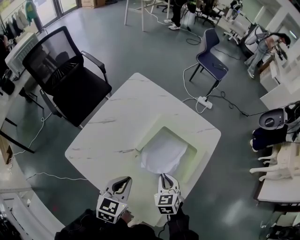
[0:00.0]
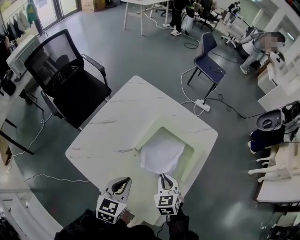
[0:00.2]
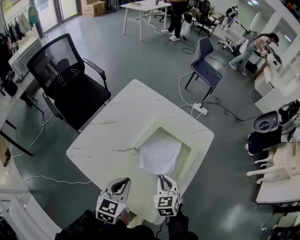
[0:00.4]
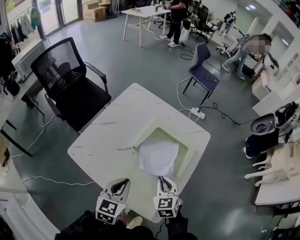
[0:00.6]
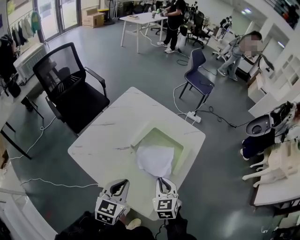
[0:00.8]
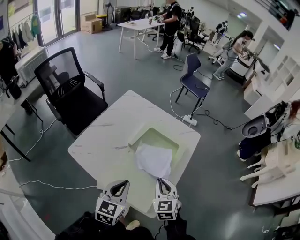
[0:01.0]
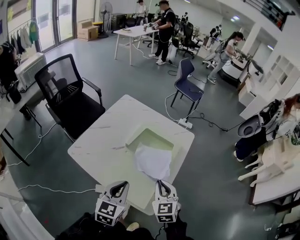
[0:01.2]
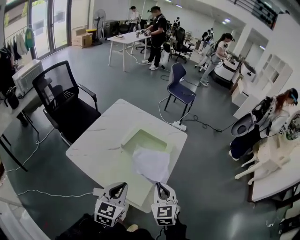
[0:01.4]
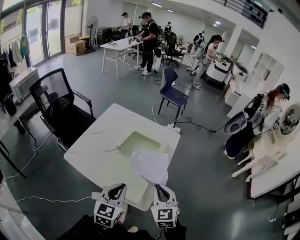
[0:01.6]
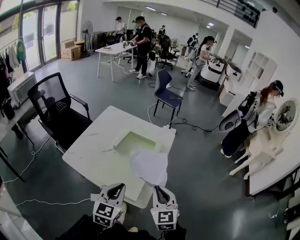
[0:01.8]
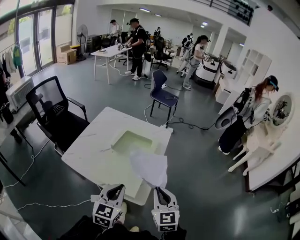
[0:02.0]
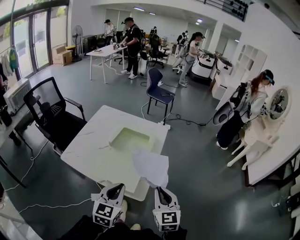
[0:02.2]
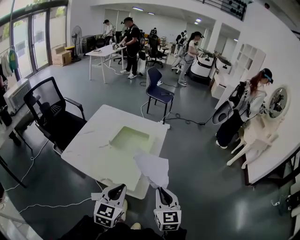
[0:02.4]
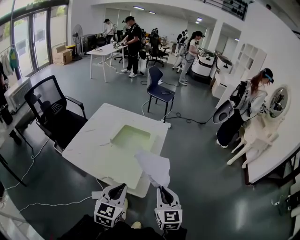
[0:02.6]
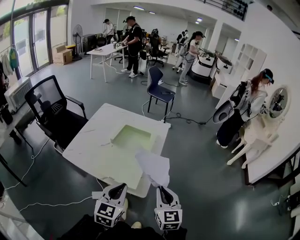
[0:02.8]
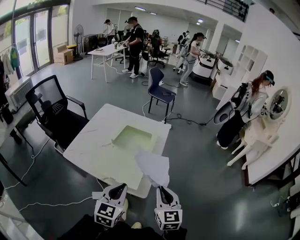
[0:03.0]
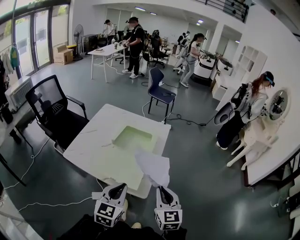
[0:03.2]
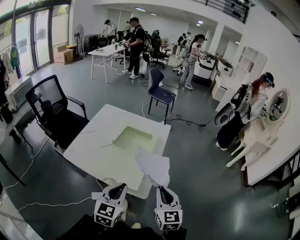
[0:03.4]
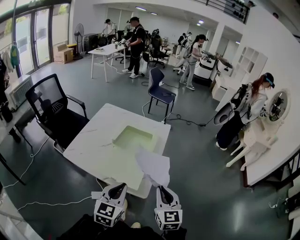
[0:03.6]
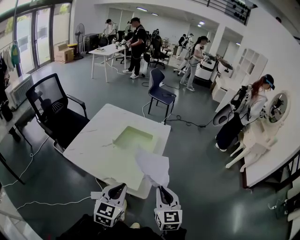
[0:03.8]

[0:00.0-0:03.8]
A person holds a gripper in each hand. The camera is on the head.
0:00.0 to 0:01.2: The grippers both shift backward and upward by about 25 cm.
0:01.2 to 0:02.6: The two grippers go about 25 cm backward and to the right. The right gripper rotates some 20 degrees.
0:02.6 to 0:03.8: The grippers stay close to where they were, moving slightly.

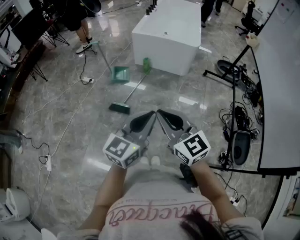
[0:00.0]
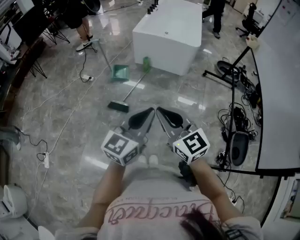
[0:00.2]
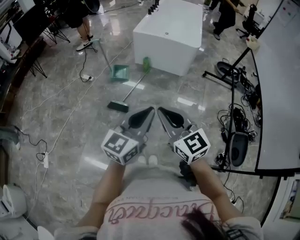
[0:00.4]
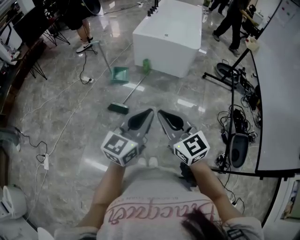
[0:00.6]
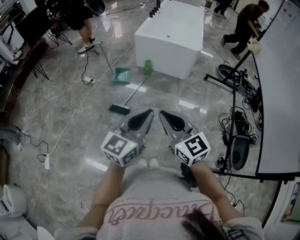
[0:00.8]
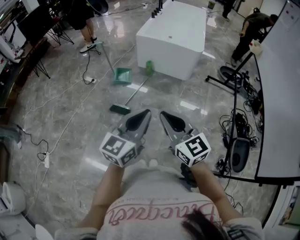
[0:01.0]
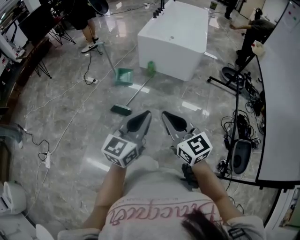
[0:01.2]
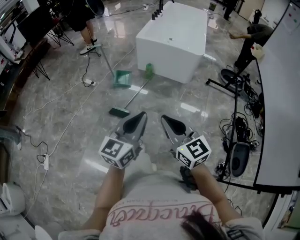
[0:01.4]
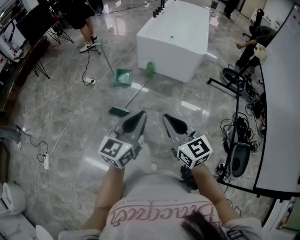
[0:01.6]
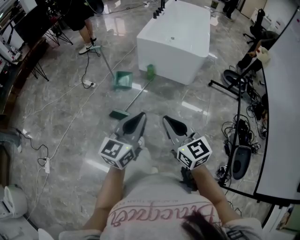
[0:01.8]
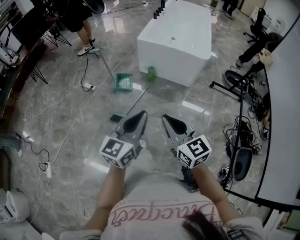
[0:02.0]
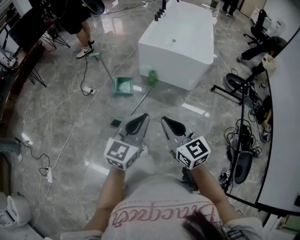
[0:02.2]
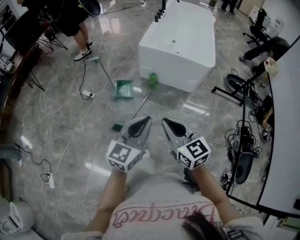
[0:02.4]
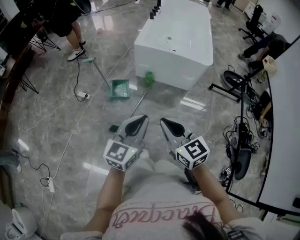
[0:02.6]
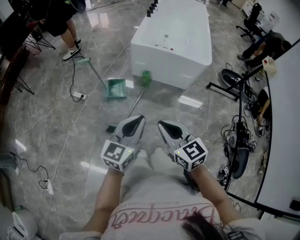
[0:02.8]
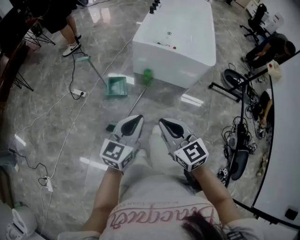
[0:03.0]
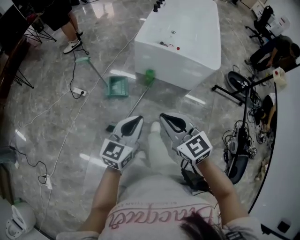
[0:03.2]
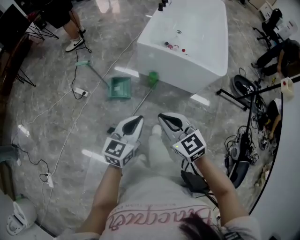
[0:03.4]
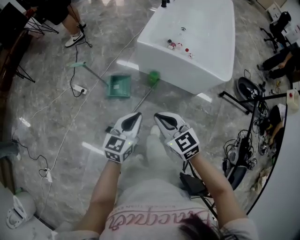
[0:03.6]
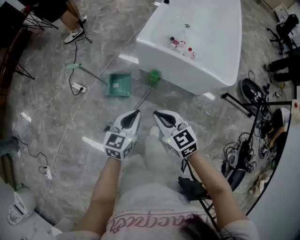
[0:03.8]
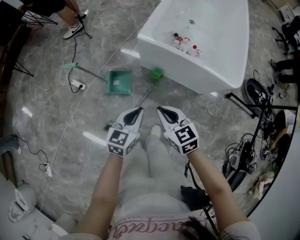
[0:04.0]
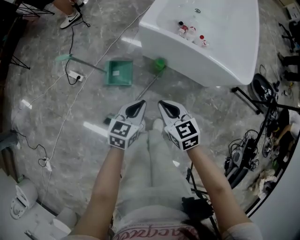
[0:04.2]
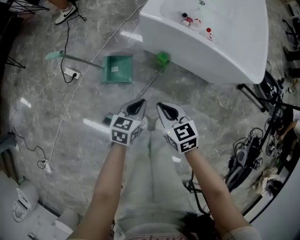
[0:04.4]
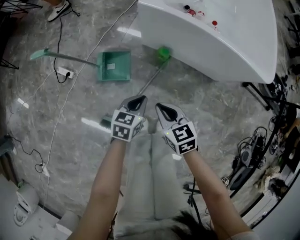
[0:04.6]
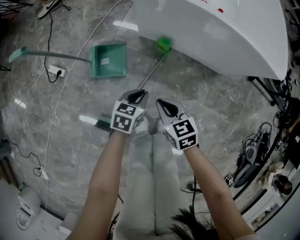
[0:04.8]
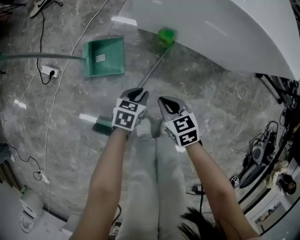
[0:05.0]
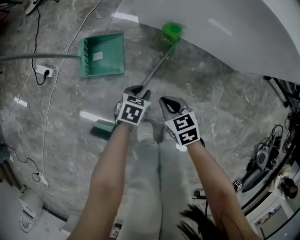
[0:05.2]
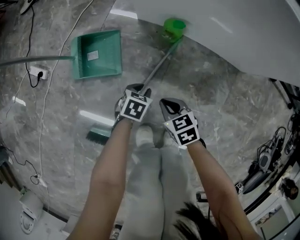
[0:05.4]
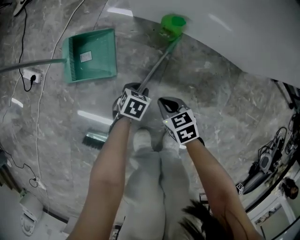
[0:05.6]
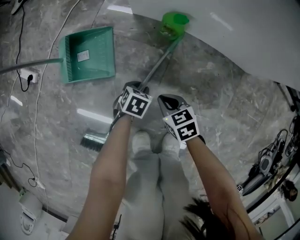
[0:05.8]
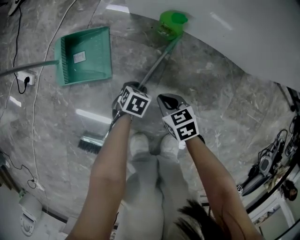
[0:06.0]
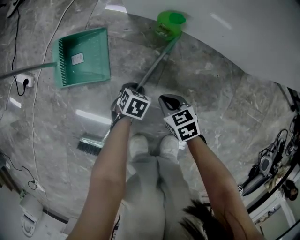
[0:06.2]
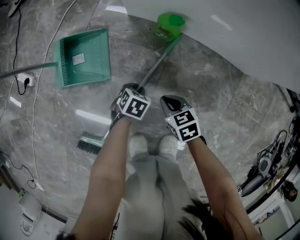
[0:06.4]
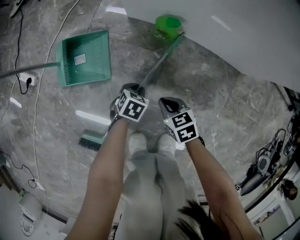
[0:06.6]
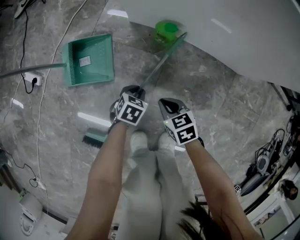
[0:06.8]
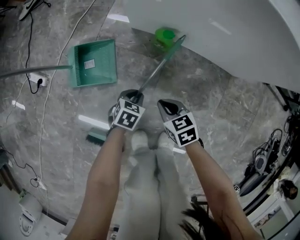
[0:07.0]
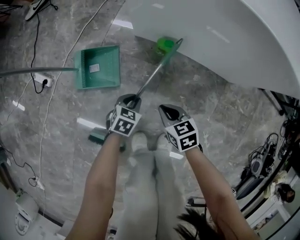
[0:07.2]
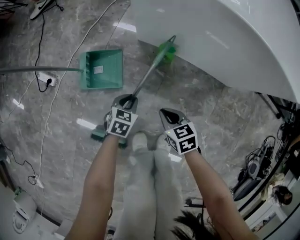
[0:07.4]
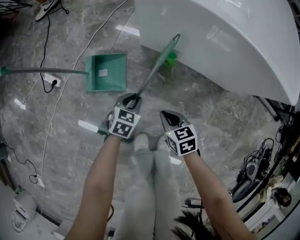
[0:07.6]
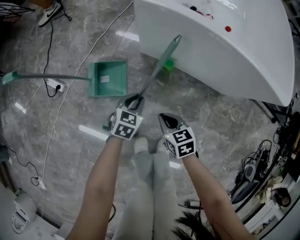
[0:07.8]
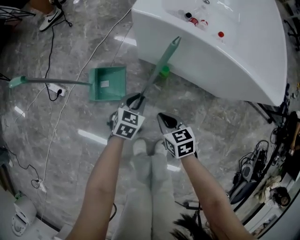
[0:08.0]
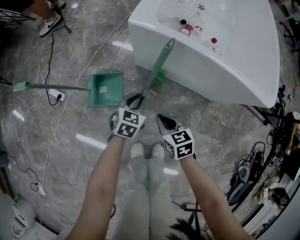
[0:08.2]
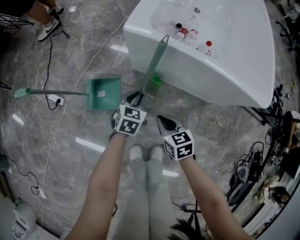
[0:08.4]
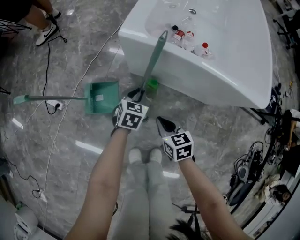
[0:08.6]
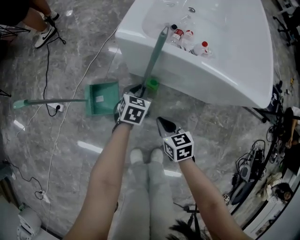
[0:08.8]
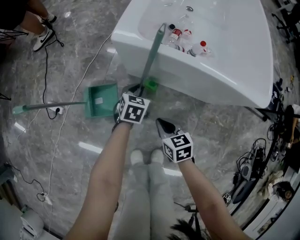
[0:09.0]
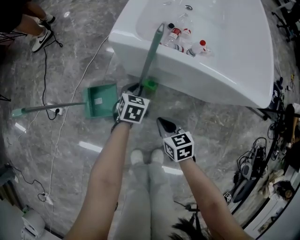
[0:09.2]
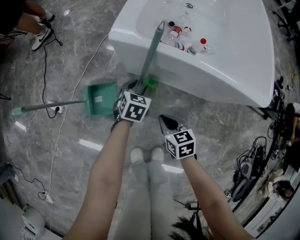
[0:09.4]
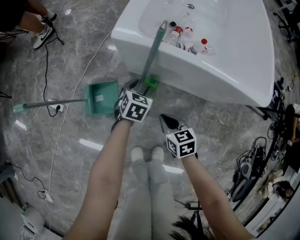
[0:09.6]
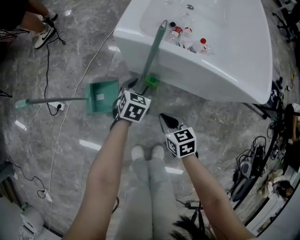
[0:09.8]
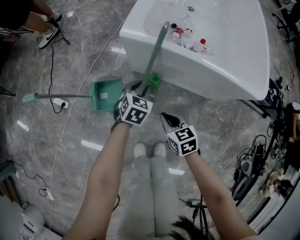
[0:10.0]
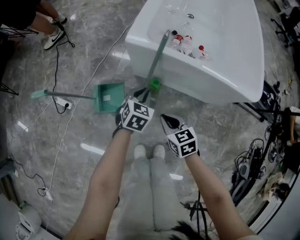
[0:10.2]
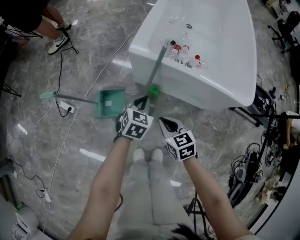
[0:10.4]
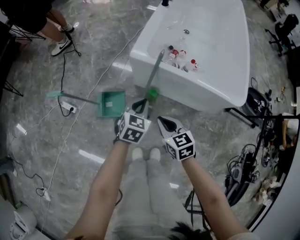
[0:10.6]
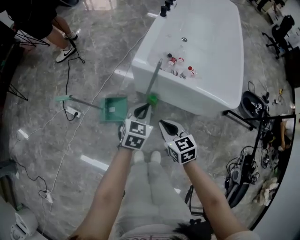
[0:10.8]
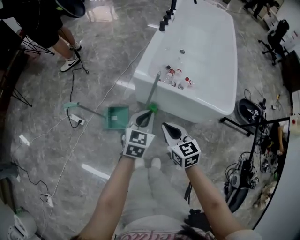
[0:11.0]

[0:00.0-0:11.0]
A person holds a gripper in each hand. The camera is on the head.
0:00.0 to 0:01.6: Both grippers travel together forward, approximately 5 cm.
0:01.6 to 0:03.2: Both grippers travel together forward, roughly 25 cm.
0:03.2 to 0:04.8: The two grippers go about 50 cm downward and forward. The right gripper turns by approximately 30 degrees; the left gripper angles its fingers downward, by about 30 degrees.
0:04.8 to 0:06.2: The grippers both shift downward by roughly 30 cm. The left gripper swivels approximately 30 degrees.
0:06.2 to 0:07.8: The two grippers go roughly 25 cm upward. The left gripper changes its angle by about 30 degrees.
0:07.8 to 0:09.4: The right gripper heads upward, to the right and forward, covering about 10 cm, while the left gripper shifts some 15 cm forward, to the right and upward, and opens its fingers.
0:09.4 to 0:11.0: The grippers both shift upward by some 30 cm. The left gripper rotates roughly 20 degrees, and closes, while the right gripper turns by some 20 degrees.

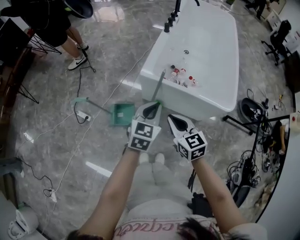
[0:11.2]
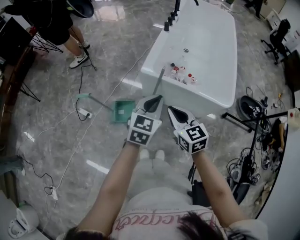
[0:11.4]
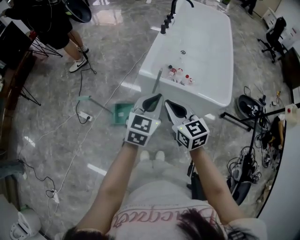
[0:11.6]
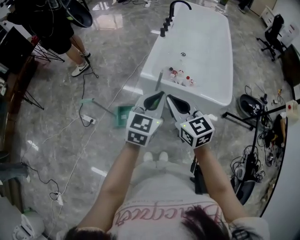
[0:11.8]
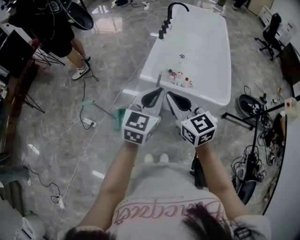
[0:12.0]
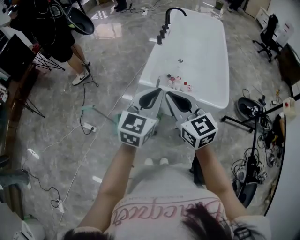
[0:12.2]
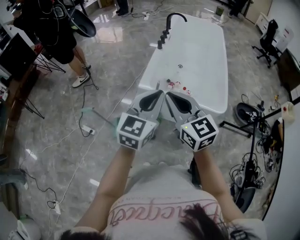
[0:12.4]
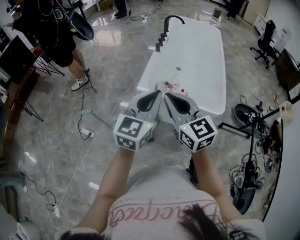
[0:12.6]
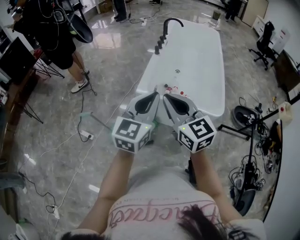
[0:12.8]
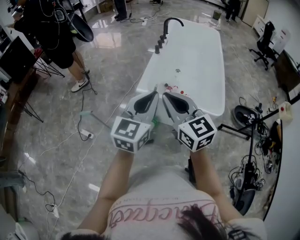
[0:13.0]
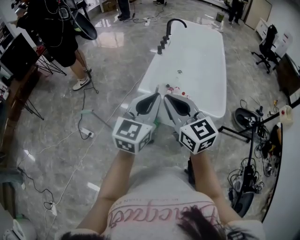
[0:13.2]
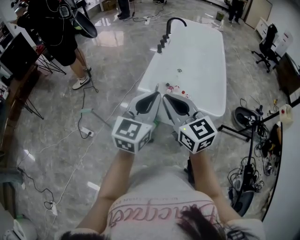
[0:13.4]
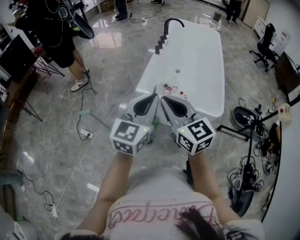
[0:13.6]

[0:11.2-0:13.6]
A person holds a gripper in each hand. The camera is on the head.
0:11.2 to 0:12.4: The grippers both shift upward by some 20 cm. The left gripper changes its angle by roughly 20 degrees. Meanwhile the right gripper changes its angle by approximately 20 degrees.
0:12.4 to 0:13.6: The grippers stay close to where they were, moving slightly.

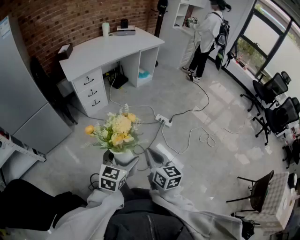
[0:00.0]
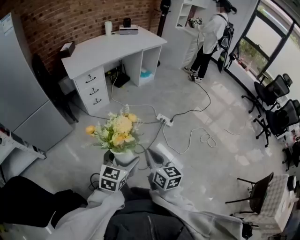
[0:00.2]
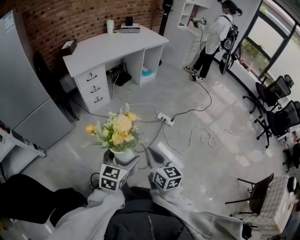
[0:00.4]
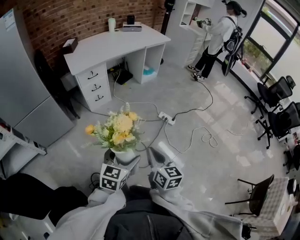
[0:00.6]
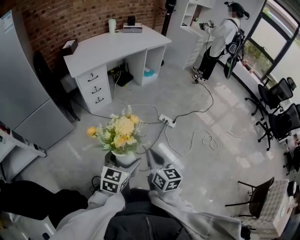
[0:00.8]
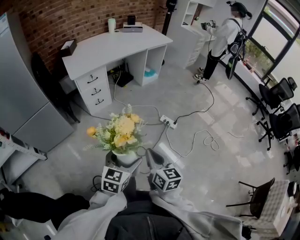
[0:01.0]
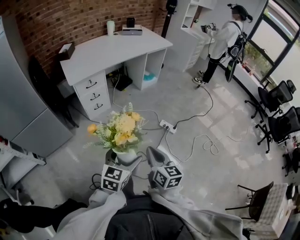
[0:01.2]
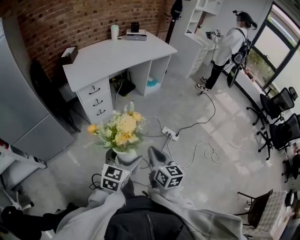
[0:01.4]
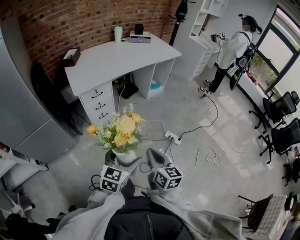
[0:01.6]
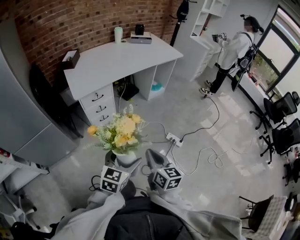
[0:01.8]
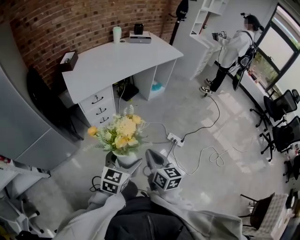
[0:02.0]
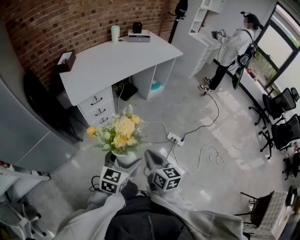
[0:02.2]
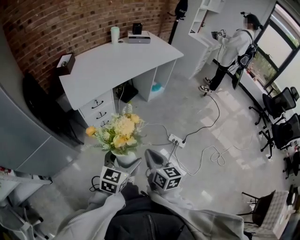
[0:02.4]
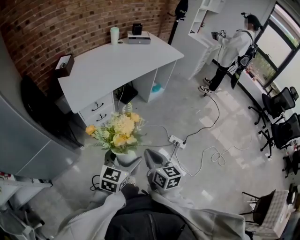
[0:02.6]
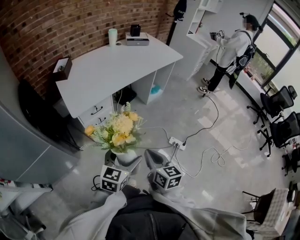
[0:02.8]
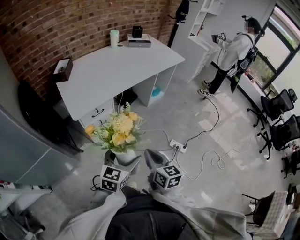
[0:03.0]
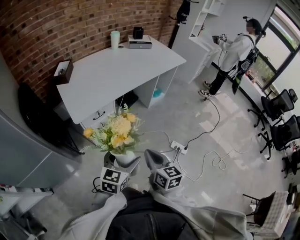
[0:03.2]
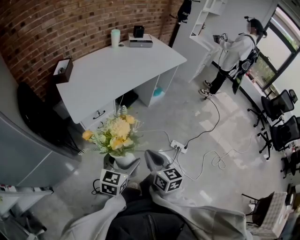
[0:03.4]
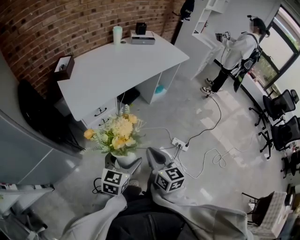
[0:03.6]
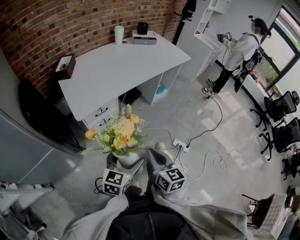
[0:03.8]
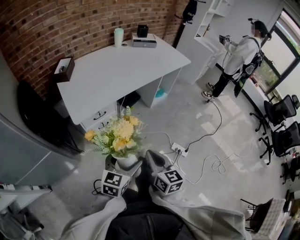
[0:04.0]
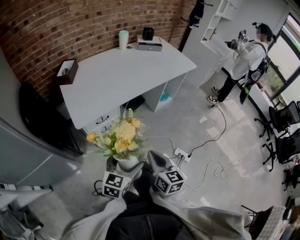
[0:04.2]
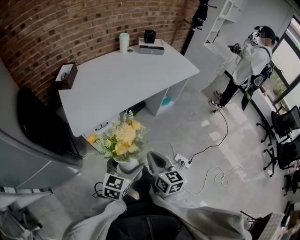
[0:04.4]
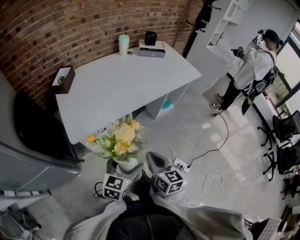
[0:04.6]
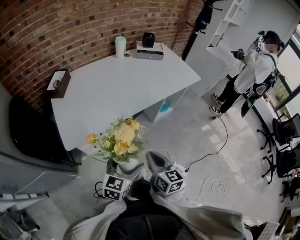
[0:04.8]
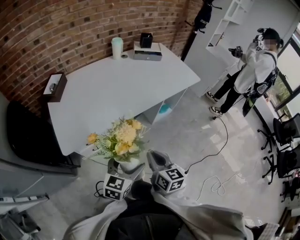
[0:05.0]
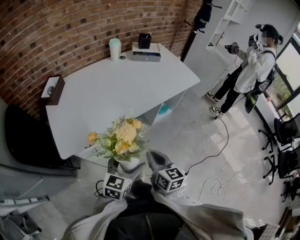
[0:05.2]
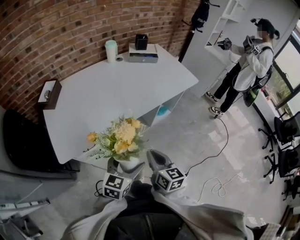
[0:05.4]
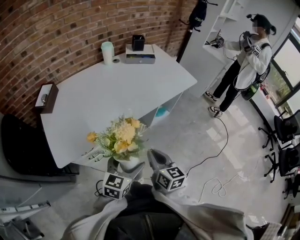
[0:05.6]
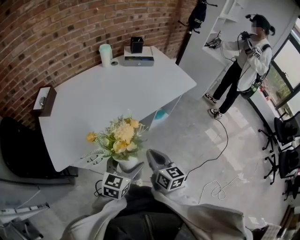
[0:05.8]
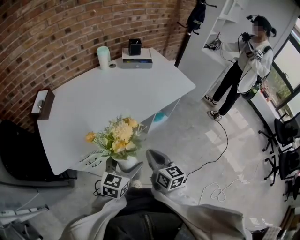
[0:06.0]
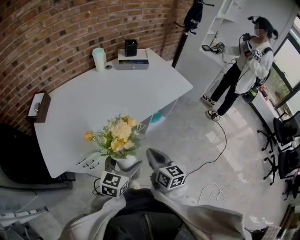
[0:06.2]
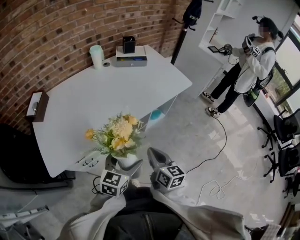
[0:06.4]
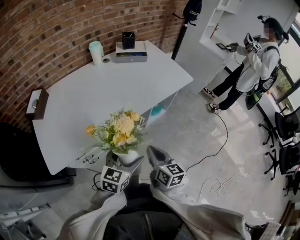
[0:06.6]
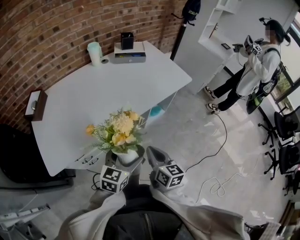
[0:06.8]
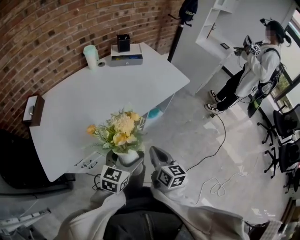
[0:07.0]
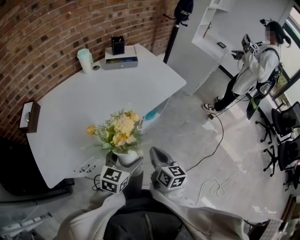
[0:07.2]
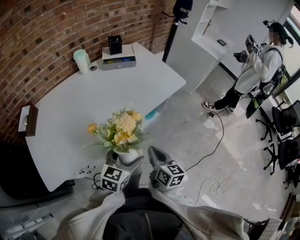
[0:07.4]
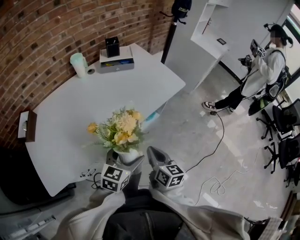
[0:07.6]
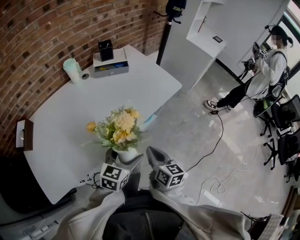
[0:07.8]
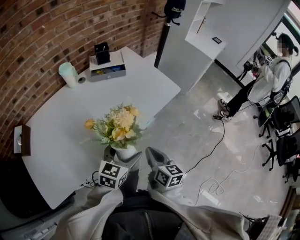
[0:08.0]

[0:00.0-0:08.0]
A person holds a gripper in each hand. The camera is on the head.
0:00.0 to 0:01.6: The grippers both shift forward and to the left by roughly 25 cm.
0:01.6 to 0:03.2: Both grippers travel together forward and to the left, roughly 25 cm.
0:03.2 to 0:04.8: Both grippers move forward, approximately 25 cm.
0:04.8 to 0:06.4: Both grippers travel together forward and to the right, approximately 20 cm.
0:06.4 to 0:08.0: Both grippers travel together forward, about 20 cm.
